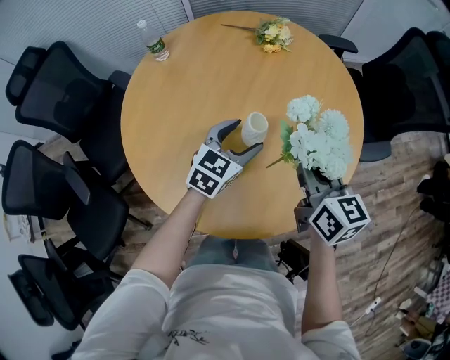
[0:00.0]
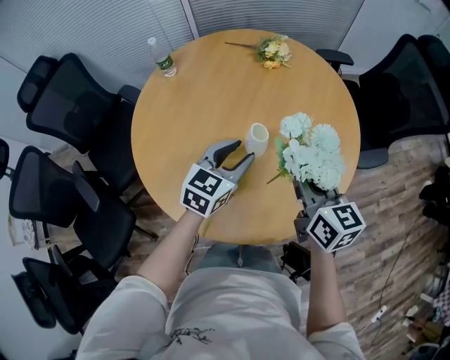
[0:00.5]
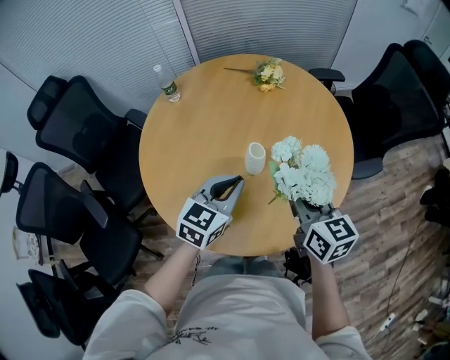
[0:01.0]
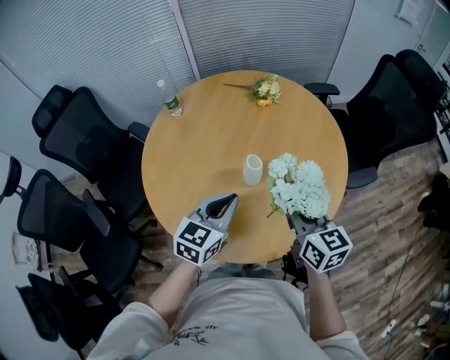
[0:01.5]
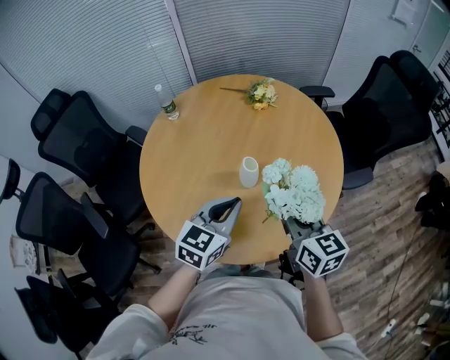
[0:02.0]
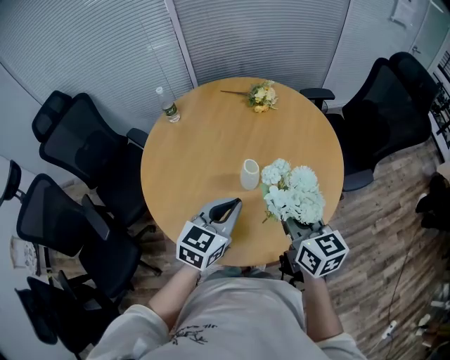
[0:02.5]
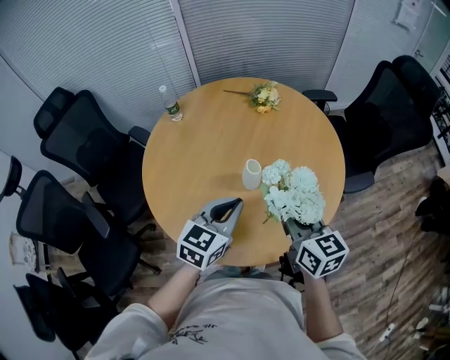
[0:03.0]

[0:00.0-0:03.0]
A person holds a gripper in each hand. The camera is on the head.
0:00.0 to 0:01.5: The left gripper heads backward and upward, covering some 15 cm, and closes its fingers. Meanwhile the right gripper heads backward, covering some 5 cm.
0:01.5 to 0:03.0: The grippers make only small movements.

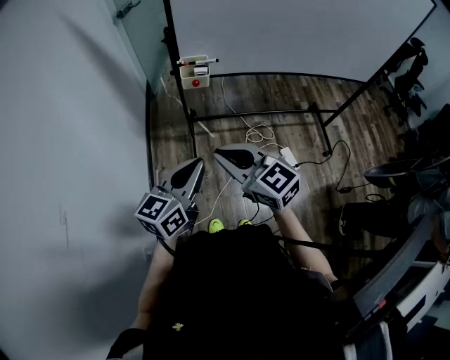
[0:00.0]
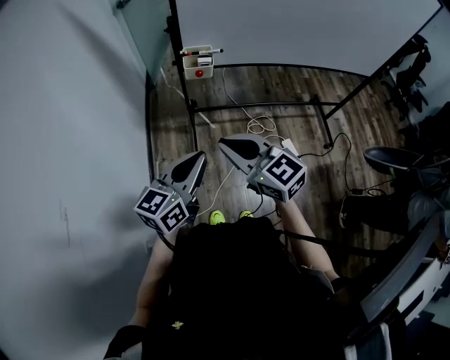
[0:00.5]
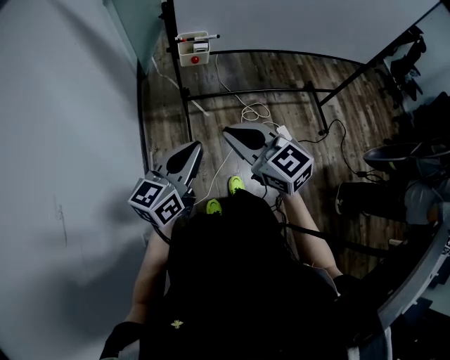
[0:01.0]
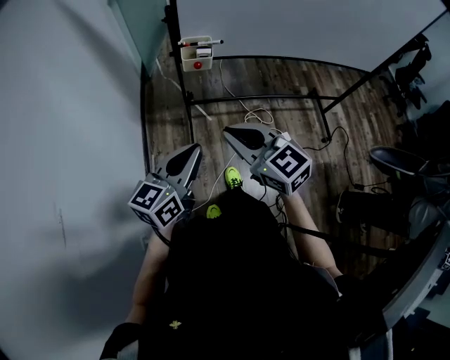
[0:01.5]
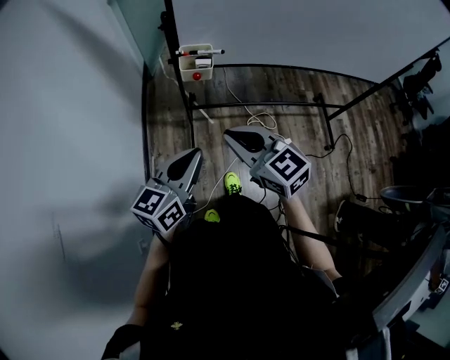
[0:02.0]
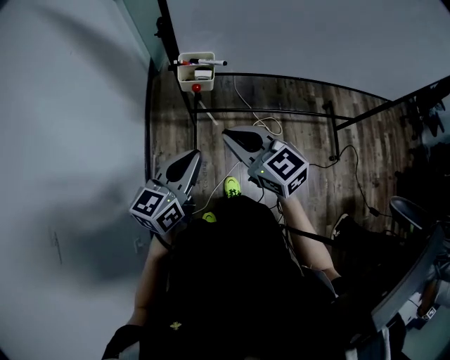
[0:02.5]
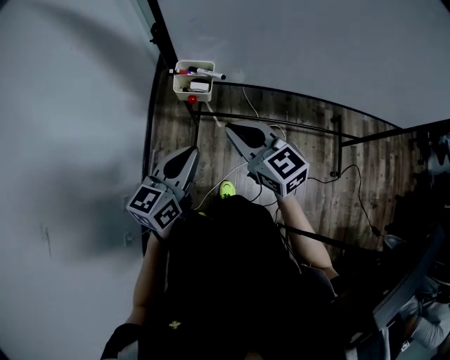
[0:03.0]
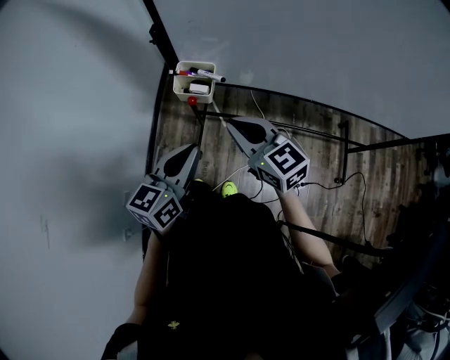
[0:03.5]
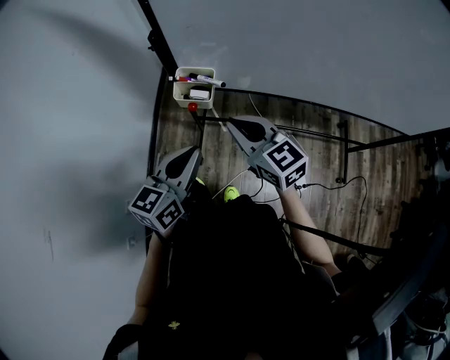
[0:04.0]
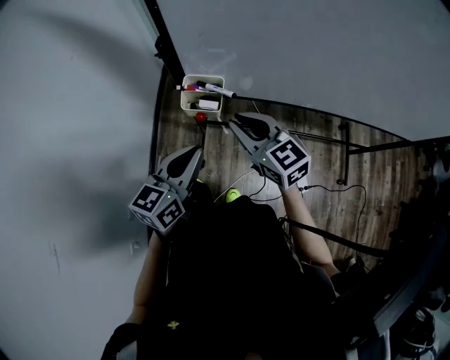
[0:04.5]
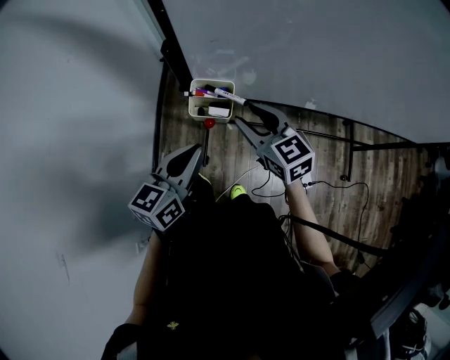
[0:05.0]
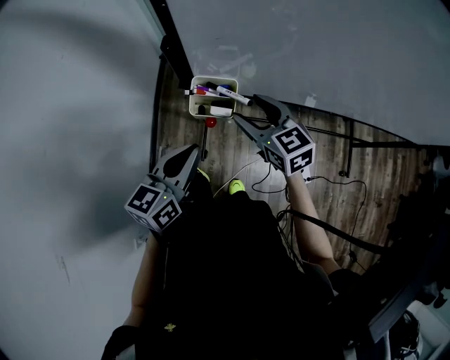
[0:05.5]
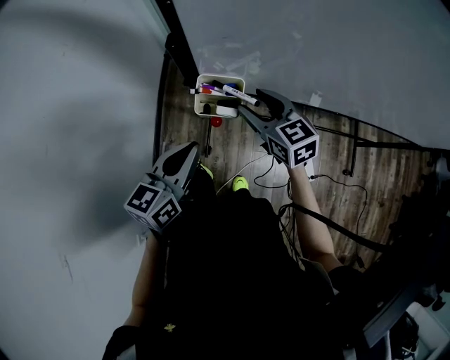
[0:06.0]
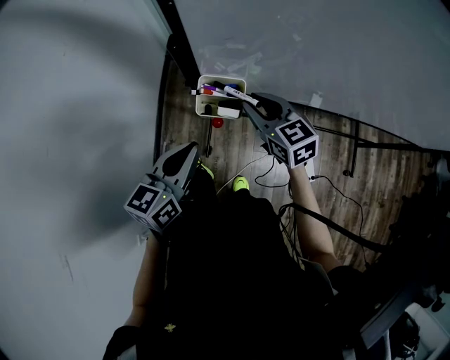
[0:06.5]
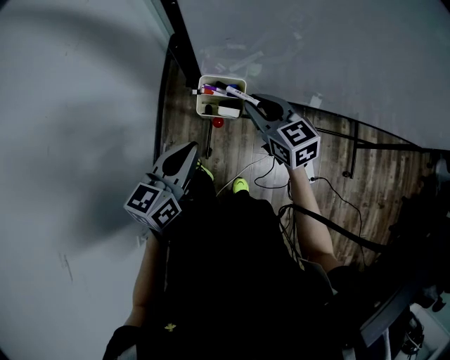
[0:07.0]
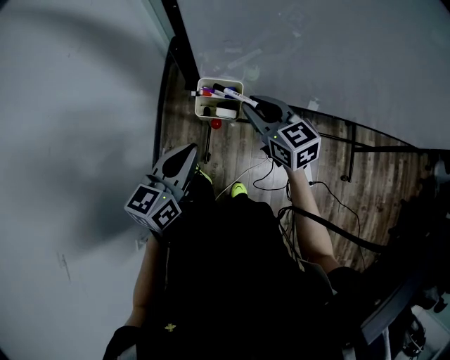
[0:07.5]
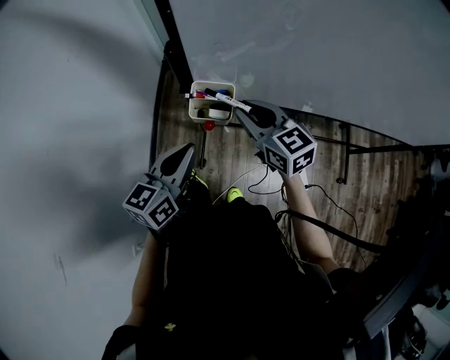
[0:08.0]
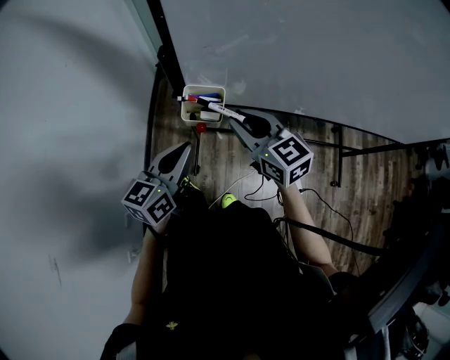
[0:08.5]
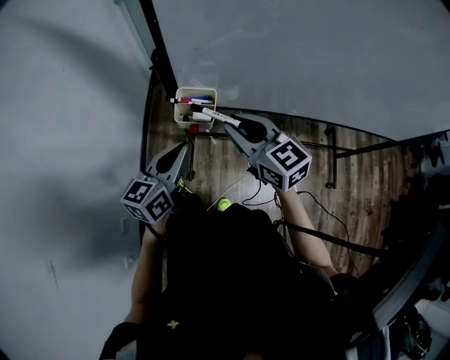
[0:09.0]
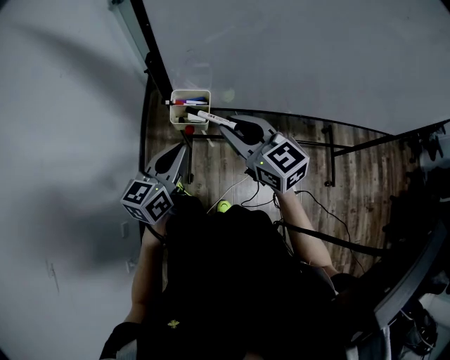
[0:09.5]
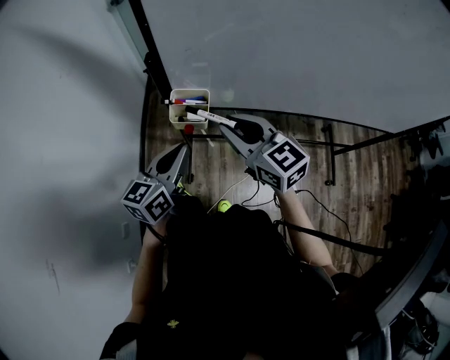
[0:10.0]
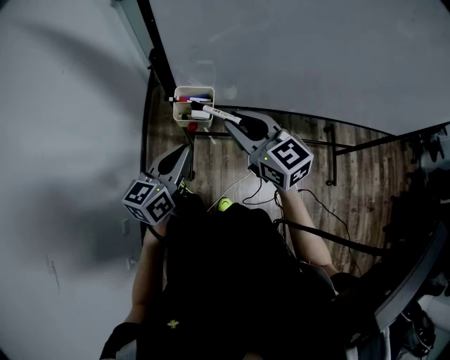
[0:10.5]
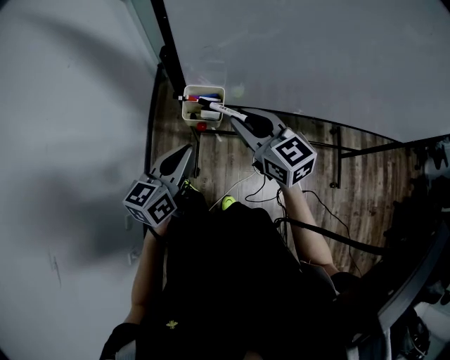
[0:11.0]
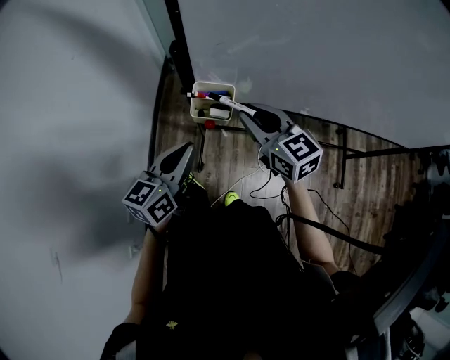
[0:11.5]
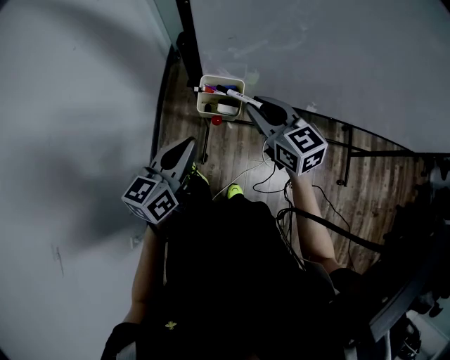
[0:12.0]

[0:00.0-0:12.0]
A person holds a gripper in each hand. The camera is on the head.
0:00.0 to 0:02.0: Both grippers move forward, about 10 cm.
0:02.0 to 0:04.0: The grippers both shift forward and to the right by about 20 cm.
0:04.0 to 0:06.0: The right gripper shifts some 15 cm forward and downward, and opens. Meanwhile the left gripper shifts roughly 10 cm forward and to the left.
0:06.0 to 0:08.0: The right gripper shifts by roughly 5 cm, and closes its fingers.
0:08.0 to 0:10.0: The right gripper travels backward and upward by roughly 10 cm.
0:10.0 to 0:12.0: The right gripper goes roughly 10 cm forward and downward, while the left gripper moves roughly 5 cm.

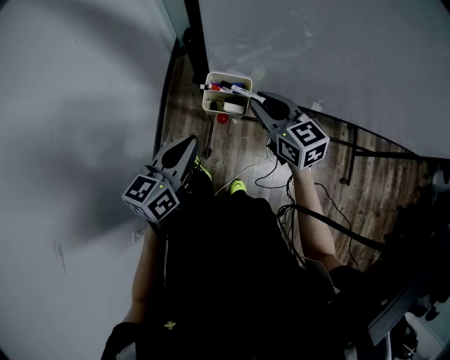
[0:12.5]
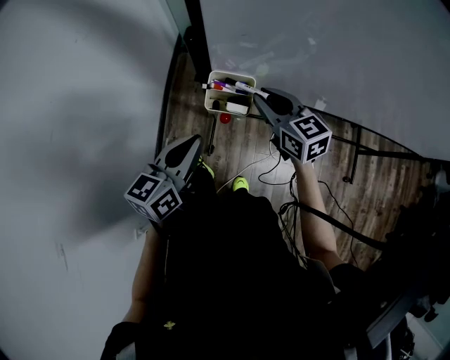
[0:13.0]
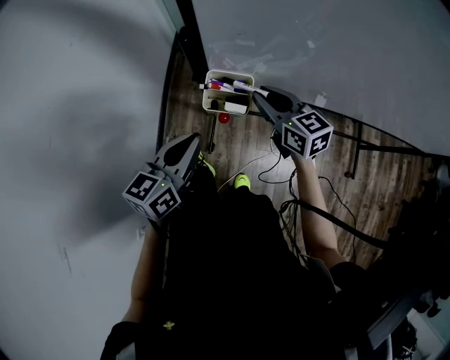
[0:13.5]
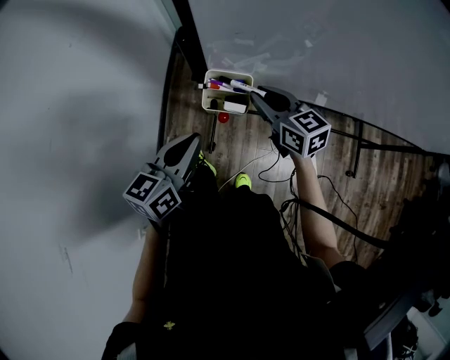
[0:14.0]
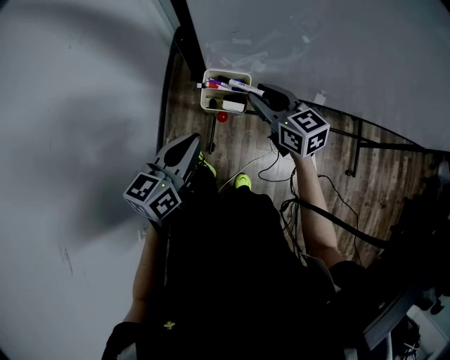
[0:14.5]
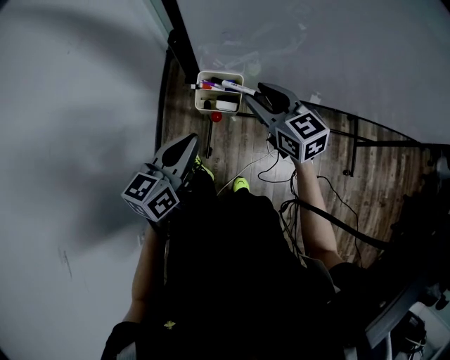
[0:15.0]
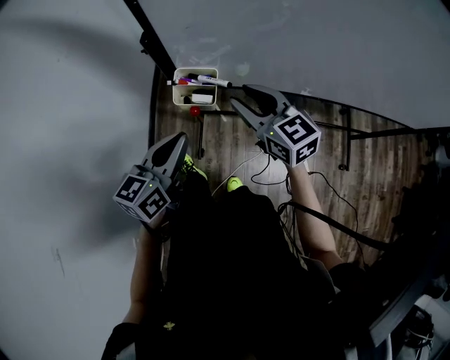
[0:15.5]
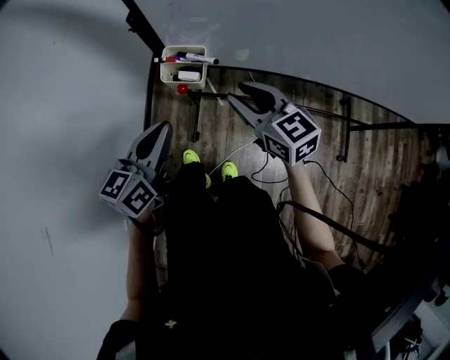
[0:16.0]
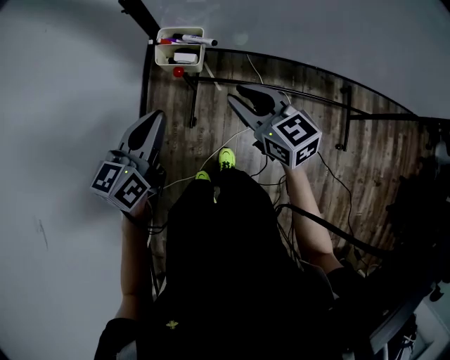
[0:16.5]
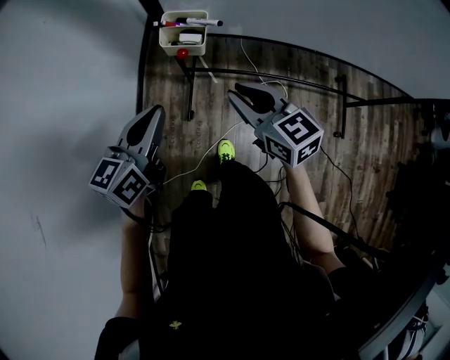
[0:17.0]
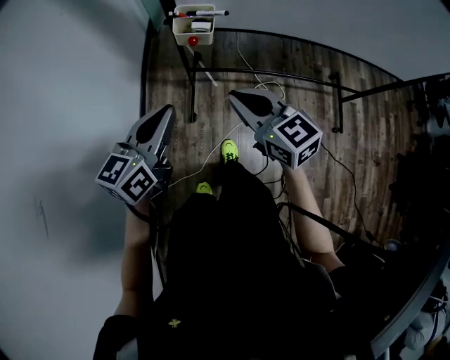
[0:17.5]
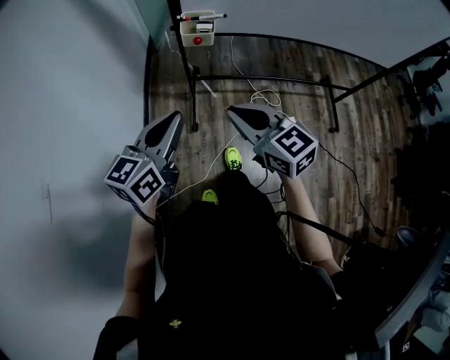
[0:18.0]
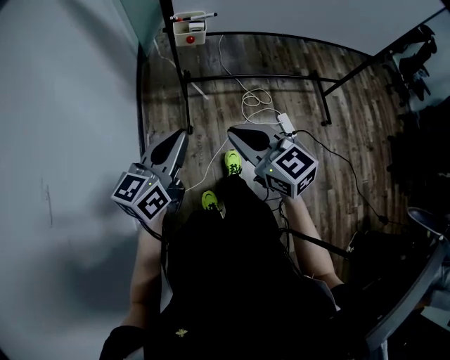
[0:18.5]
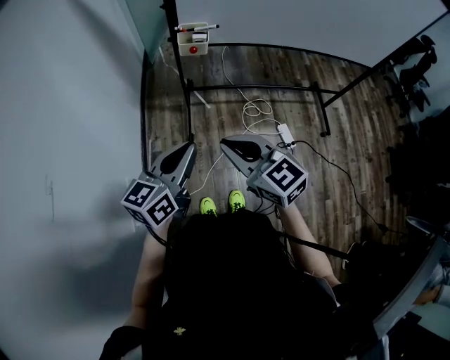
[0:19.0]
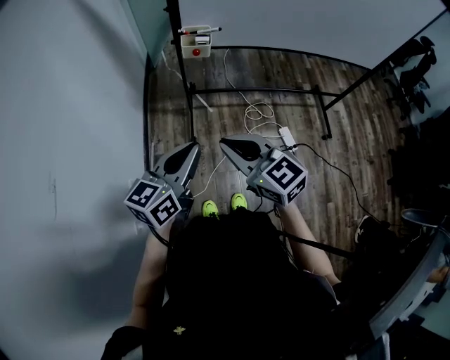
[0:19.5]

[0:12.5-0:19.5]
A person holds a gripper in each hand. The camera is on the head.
0:12.5 to 0:14.5: There are only small adjustments of the grippers.
0:14.5 to 0:16.0: The right gripper shifts approximately 10 cm backward and to the right; the left gripper heads backward, covering about 5 cm.
0:16.0 to 0:17.5: The grippers both shift backward and to the left by approximately 15 cm. The right gripper closes.
0:17.5 to 0:19.5: Both grippers move backward, approximately 20 cm.

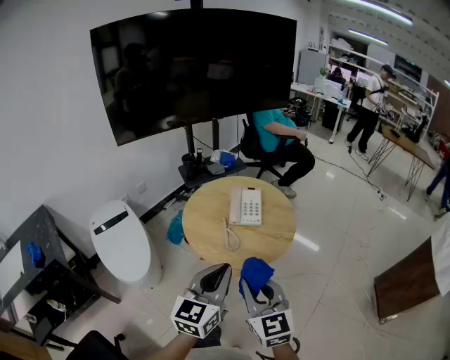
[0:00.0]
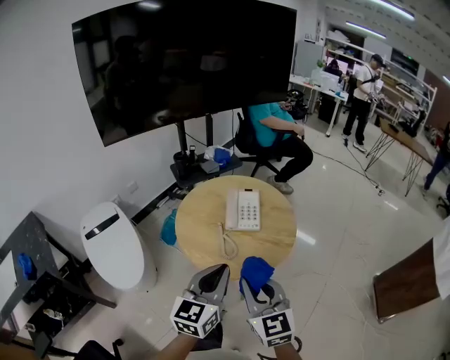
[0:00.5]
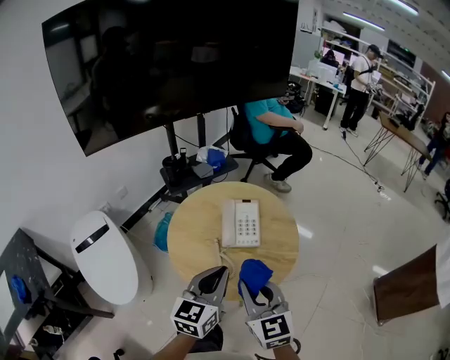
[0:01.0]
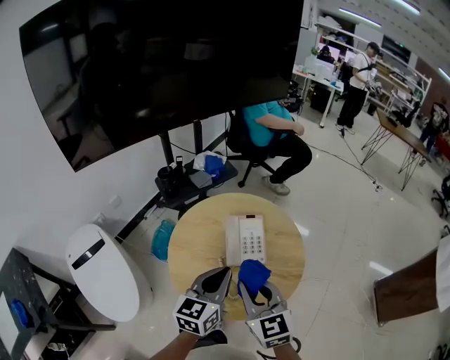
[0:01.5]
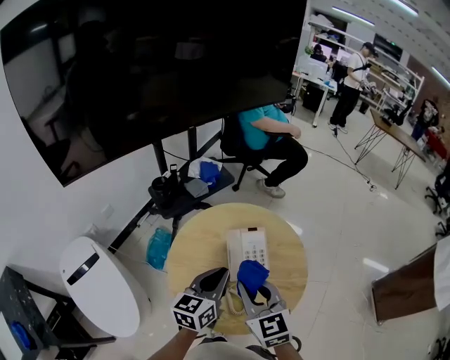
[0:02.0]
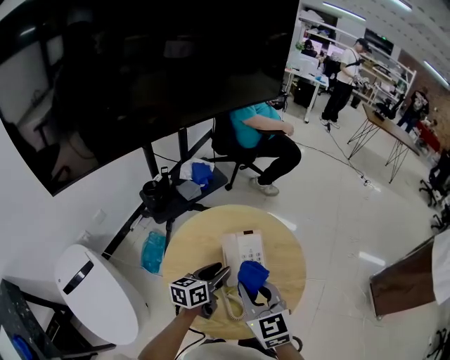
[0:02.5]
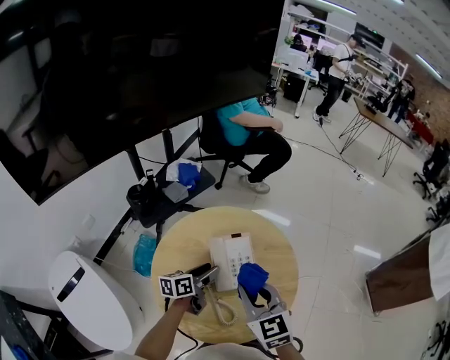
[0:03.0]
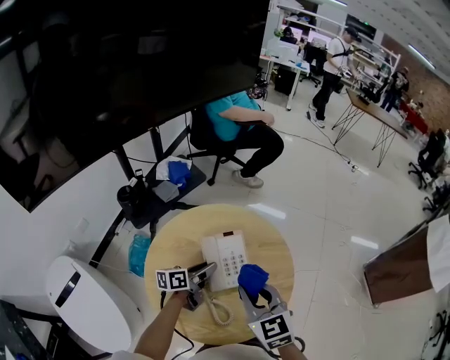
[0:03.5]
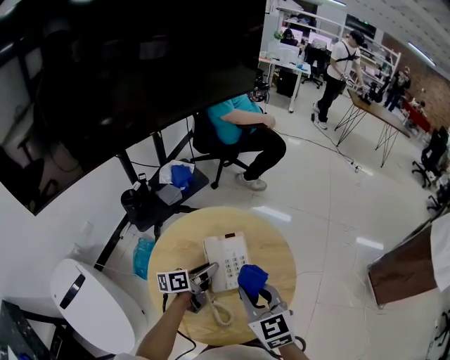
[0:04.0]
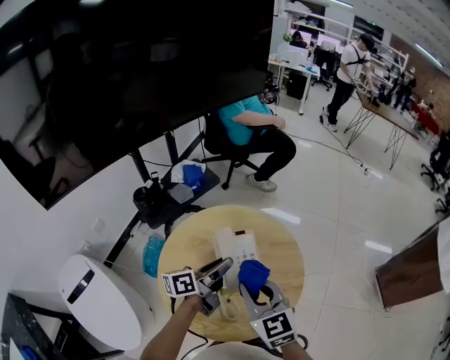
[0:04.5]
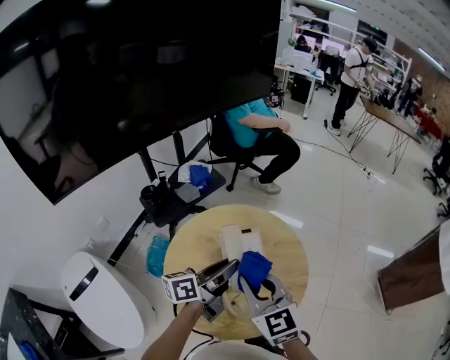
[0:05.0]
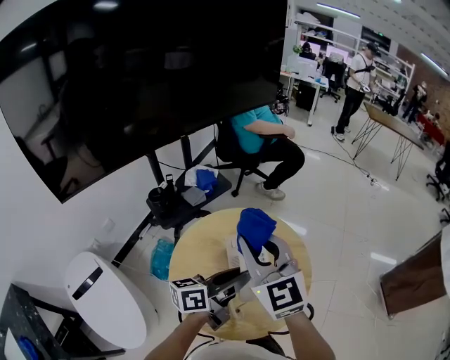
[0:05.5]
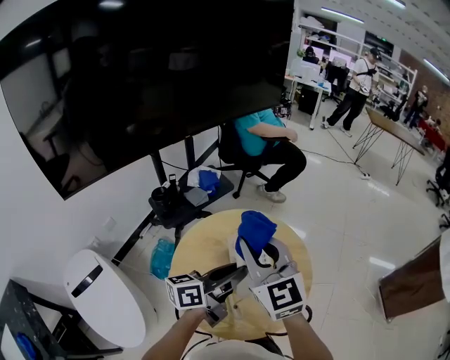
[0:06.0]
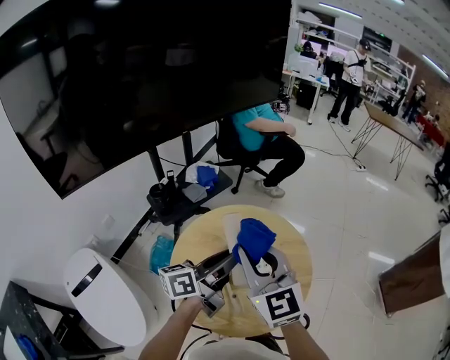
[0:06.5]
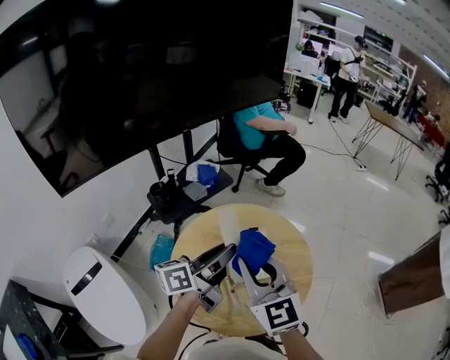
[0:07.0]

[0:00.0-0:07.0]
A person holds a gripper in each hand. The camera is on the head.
0:00.0 to 0:02.0: The two grippers go roughly 30 cm forward. The left gripper changes its angle by approximately 20 degrees.
0:02.0 to 0:03.5: The right gripper moves to the right, some 5 cm. The left gripper travels downward and forward by roughly 20 cm, changes its angle by about 40 degrees, and opens.
0:03.5 to 0:05.0: The right gripper moves upward, about 5 cm. The left gripper moves upward, approximately 20 cm.
0:05.0 to 0:07.0: The two grippers go roughly 5 cm upward.
